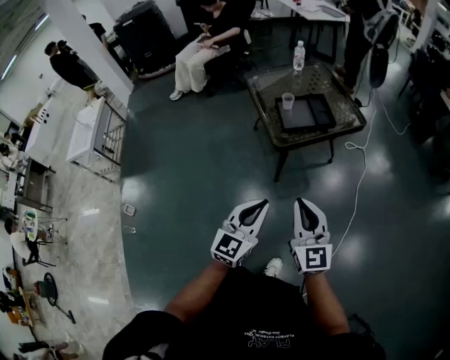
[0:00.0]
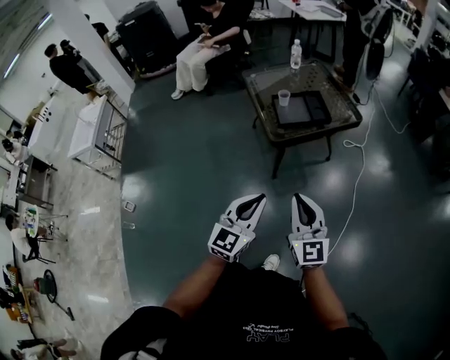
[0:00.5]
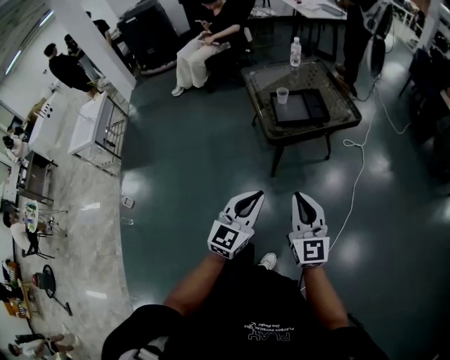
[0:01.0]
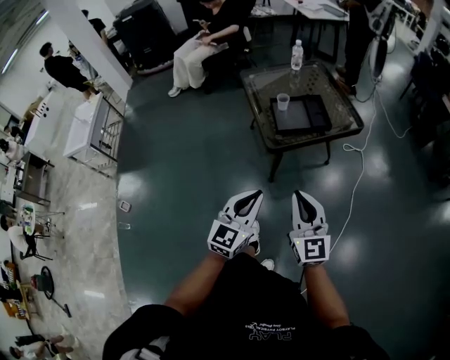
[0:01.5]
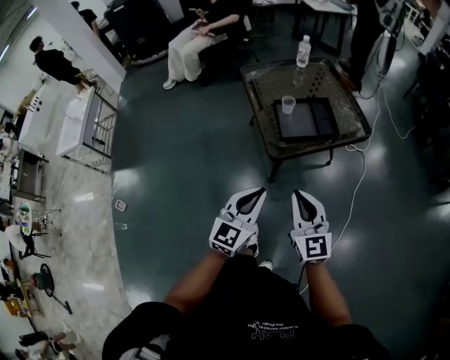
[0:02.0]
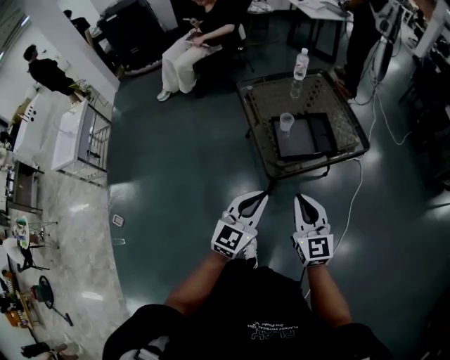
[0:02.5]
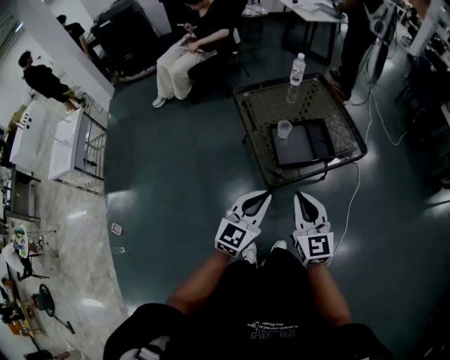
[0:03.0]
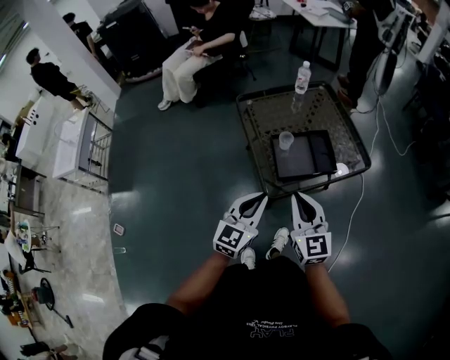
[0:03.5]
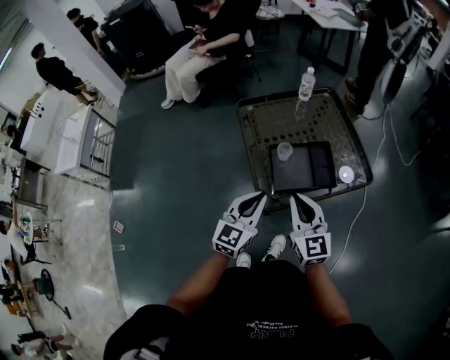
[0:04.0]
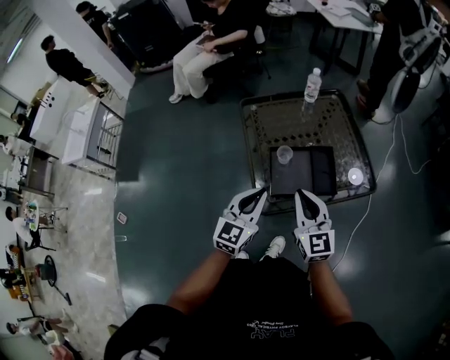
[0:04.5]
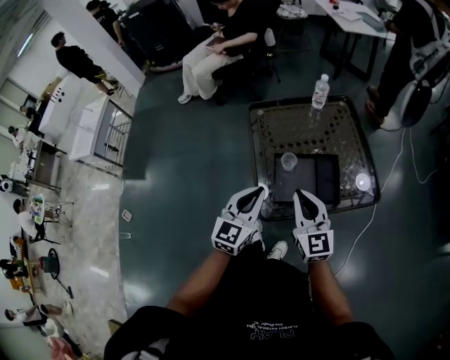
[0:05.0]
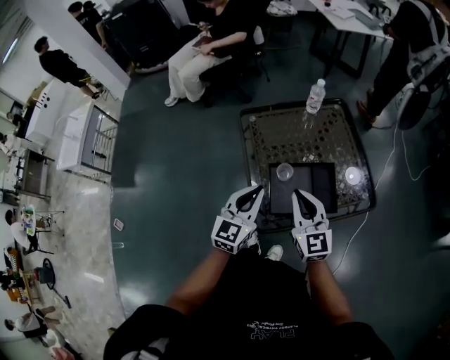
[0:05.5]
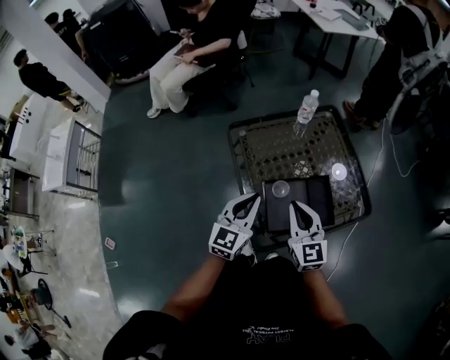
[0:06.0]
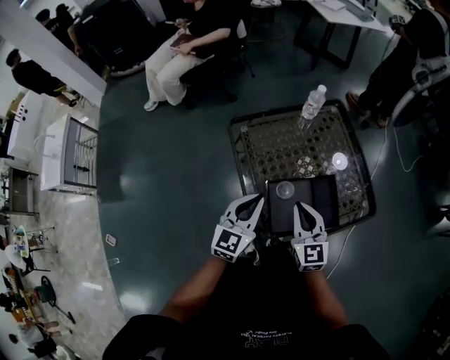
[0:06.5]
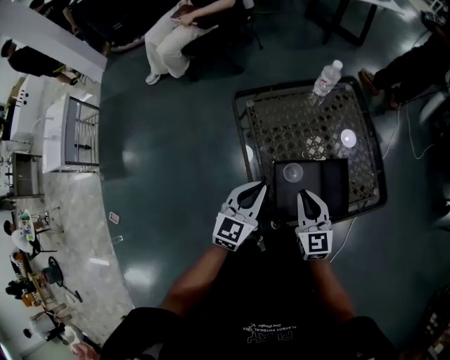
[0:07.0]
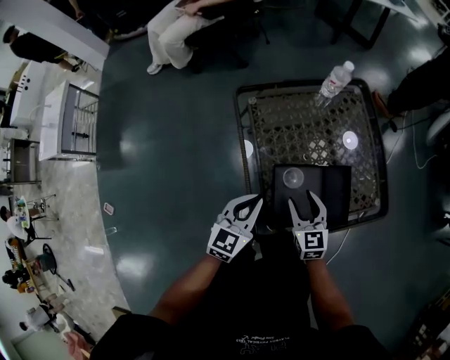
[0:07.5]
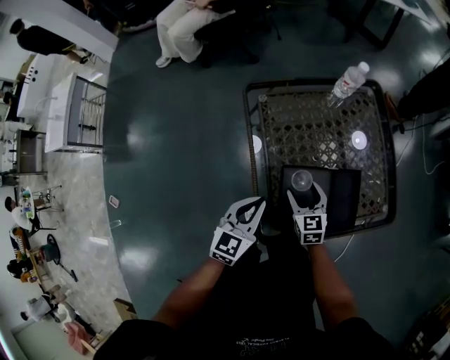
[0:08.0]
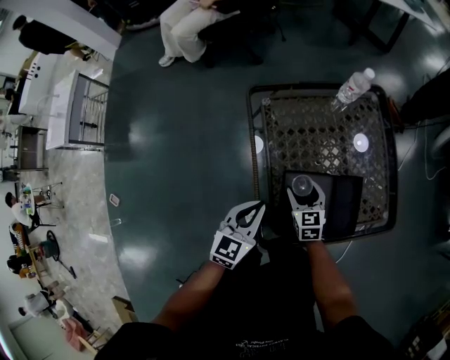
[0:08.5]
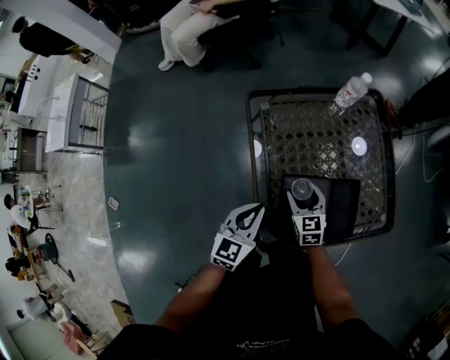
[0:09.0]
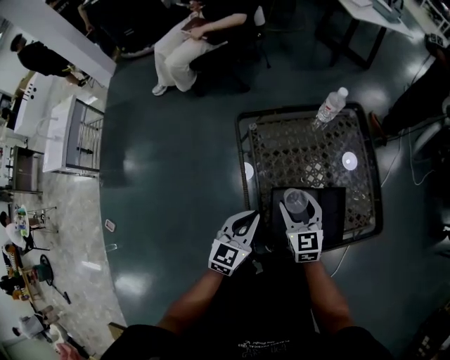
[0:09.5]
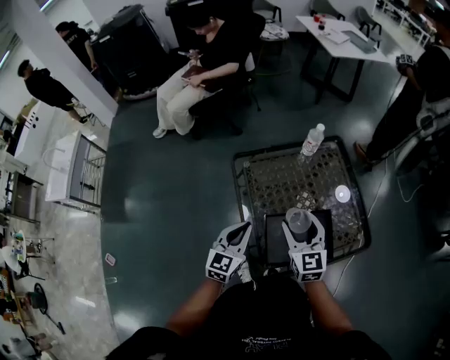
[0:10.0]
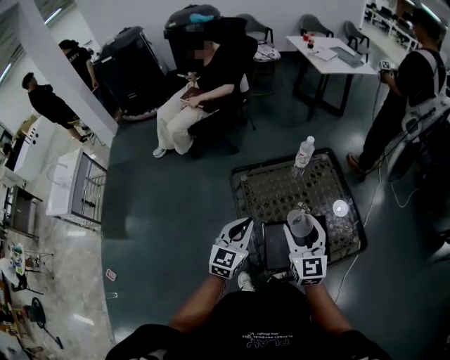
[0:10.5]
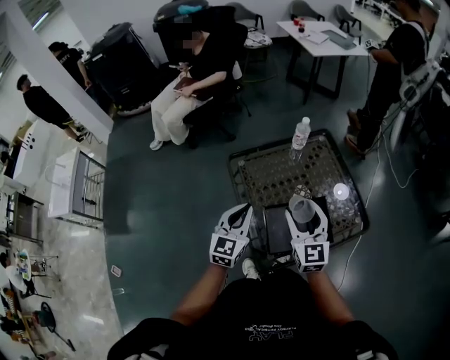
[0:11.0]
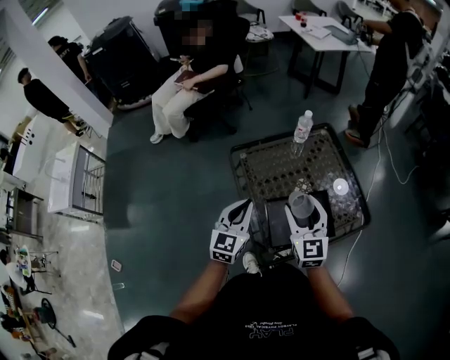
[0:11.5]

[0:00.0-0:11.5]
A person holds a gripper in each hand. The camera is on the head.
0:00.0 to 0:02.0: The two grippers go approximately 15 cm forward.
0:02.0 to 0:04.0: Both grippers move forward, roughly 25 cm.
0:04.0 to 0:06.0: The grippers both shift forward by approximately 15 cm.
0:06.0 to 0:07.5: The left gripper moves downward, approximately 10 cm; the right gripper moves downward, about 15 cm, and opens its fingers.
0:07.5 to 0:09.5: The right gripper goes approximately 5 cm forward.
0:09.5 to 0:11.5: Both grippers travel together upward, about 15 cm. The right gripper rotates some 20 degrees.

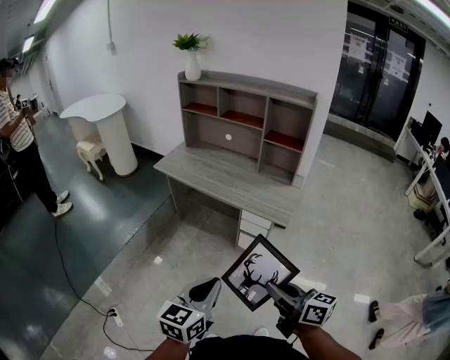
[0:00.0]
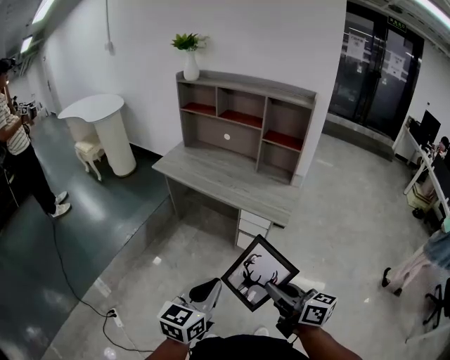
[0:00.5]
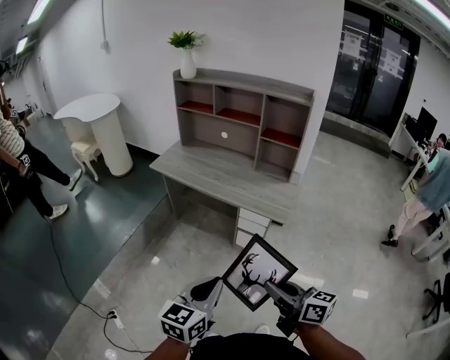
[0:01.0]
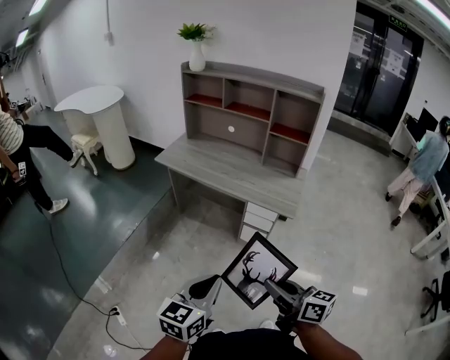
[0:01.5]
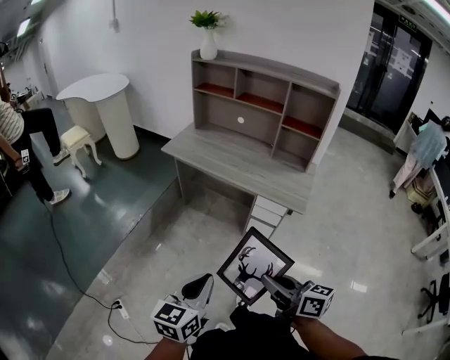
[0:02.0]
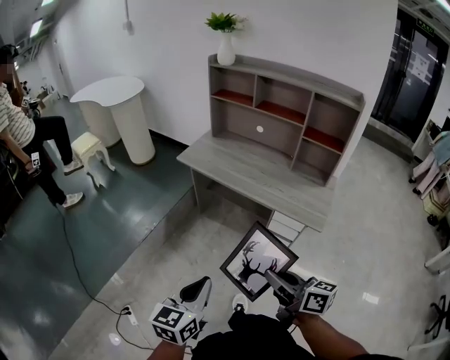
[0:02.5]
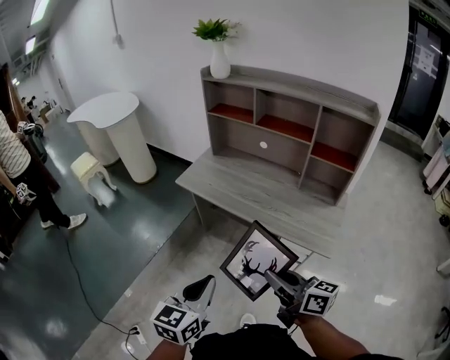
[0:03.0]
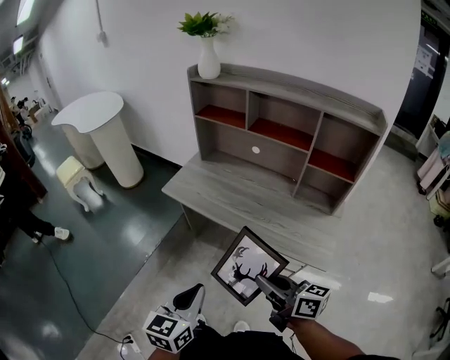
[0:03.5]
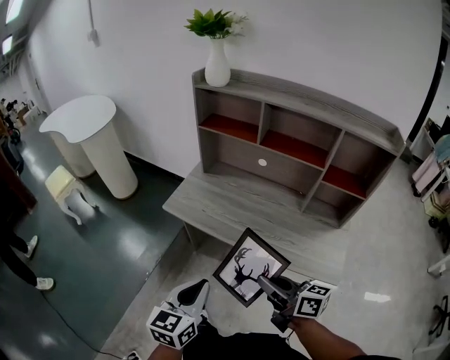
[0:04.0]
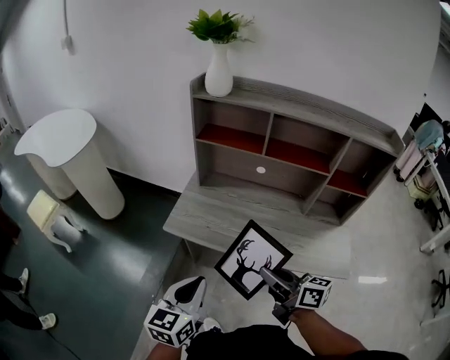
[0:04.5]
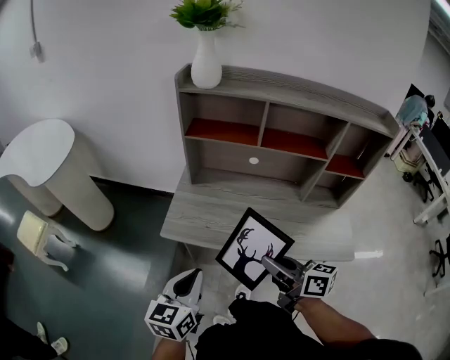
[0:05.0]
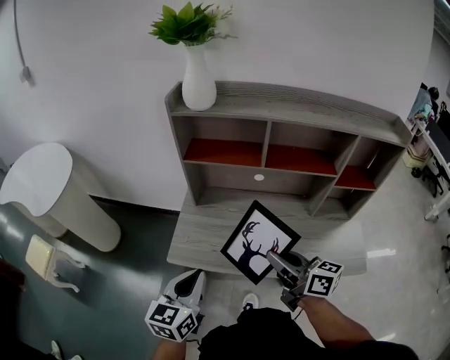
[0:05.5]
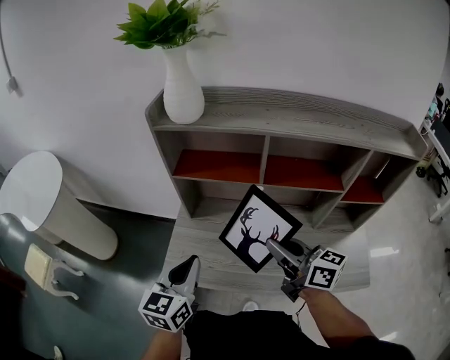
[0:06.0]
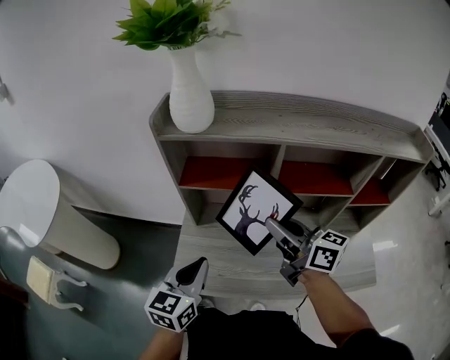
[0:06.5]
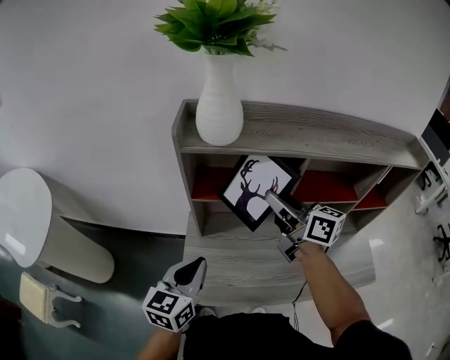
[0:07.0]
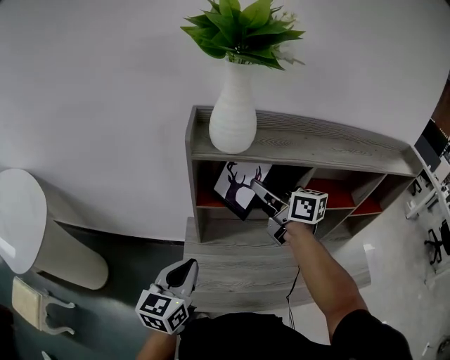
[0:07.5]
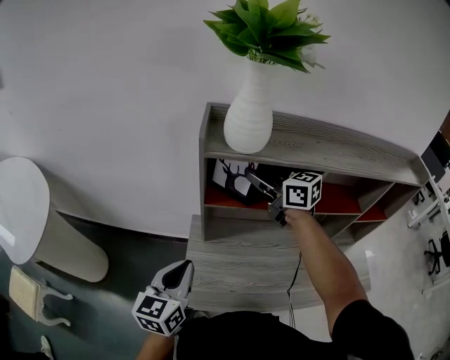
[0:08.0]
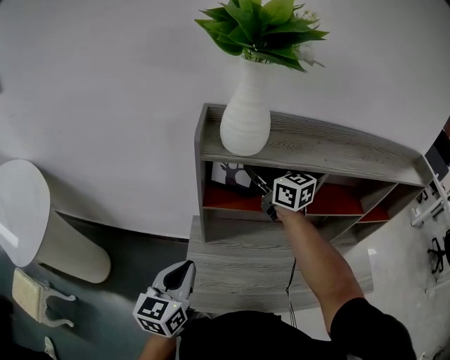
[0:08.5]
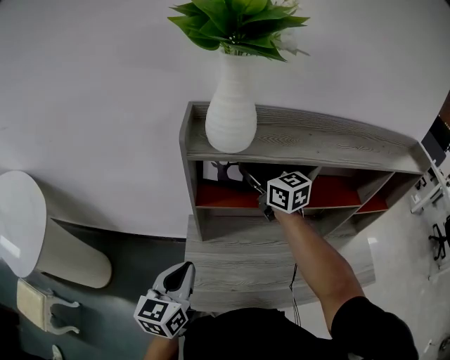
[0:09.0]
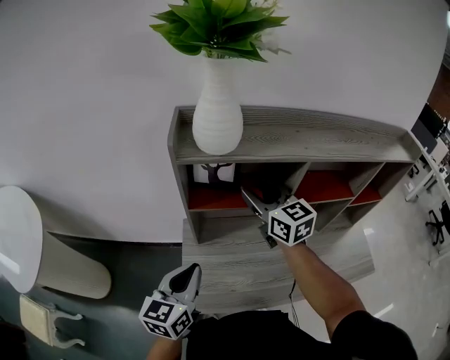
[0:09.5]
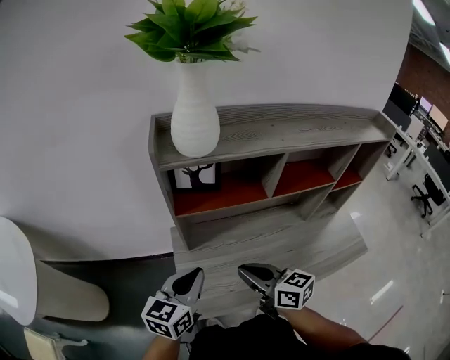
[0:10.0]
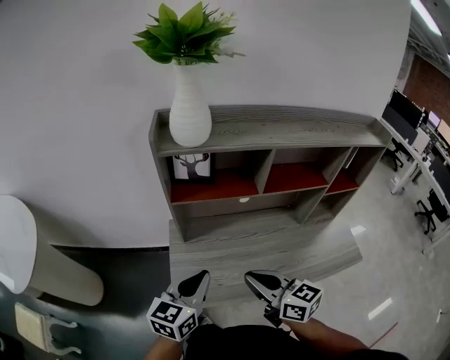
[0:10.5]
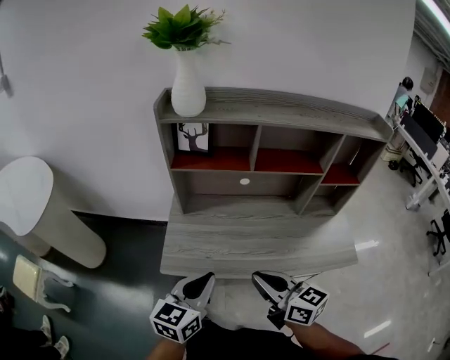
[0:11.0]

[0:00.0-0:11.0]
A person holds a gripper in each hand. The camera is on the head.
0:00.0 to 0:02.0: The grippers both shift to the left by roughly 10 cm.
0:02.0 to 0:03.5: Both grippers move forward, roughly 30 cm.
0:03.5 to 0:05.5: The left gripper heads forward and to the left, covering roughly 40 cm; the right gripper travels forward by some 35 cm, and swivels about 20 degrees.
0:05.5 to 0:07.5: The right gripper goes about 35 cm forward. Meanwhile the left gripper shifts roughly 25 cm forward.
0:07.5 to 0:09.0: The right gripper travels forward by about 10 cm, changes its angle by approximately 30 degrees, and opens up.
0:09.0 to 0:11.0: The left gripper moves backward and to the right, some 25 cm, while the right gripper is displaced backward by some 50 cm, turns by some 20 degrees, and closes.

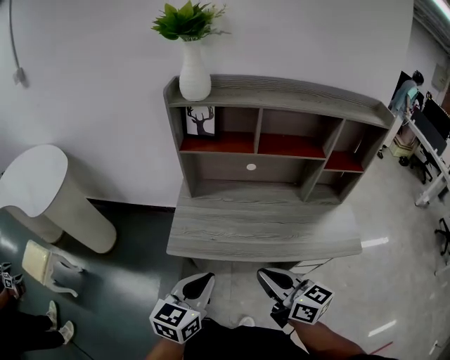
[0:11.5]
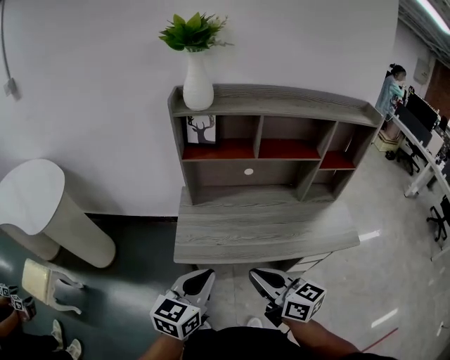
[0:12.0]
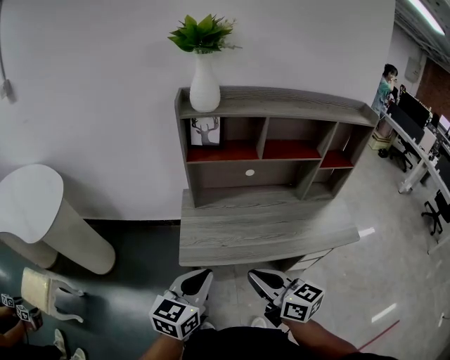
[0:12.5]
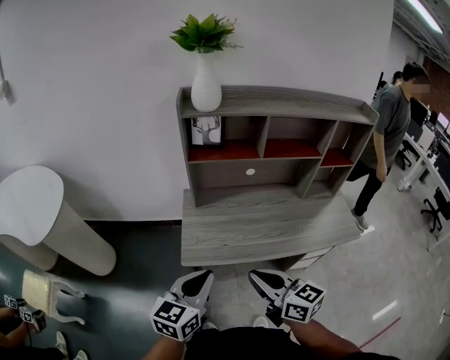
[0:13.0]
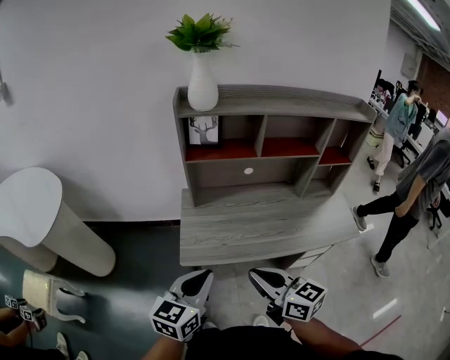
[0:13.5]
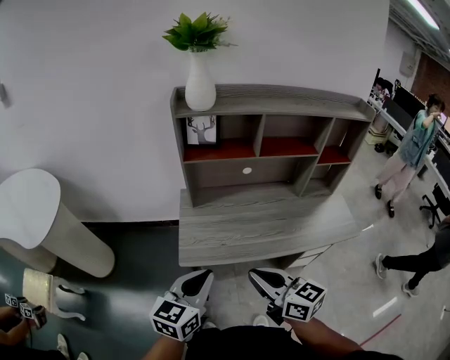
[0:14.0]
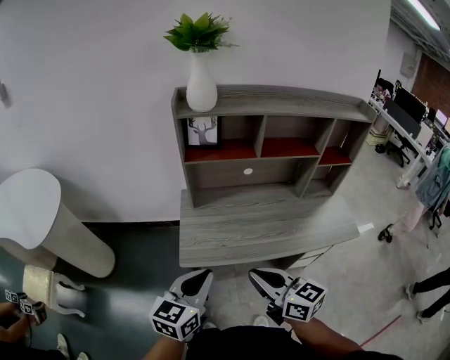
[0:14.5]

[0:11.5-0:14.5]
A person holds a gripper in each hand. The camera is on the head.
0:11.5 to 0:13.0: Both grippers travel together to the left, about 10 cm.
0:13.0 to 0:14.5: Both grippers stay about where they are.

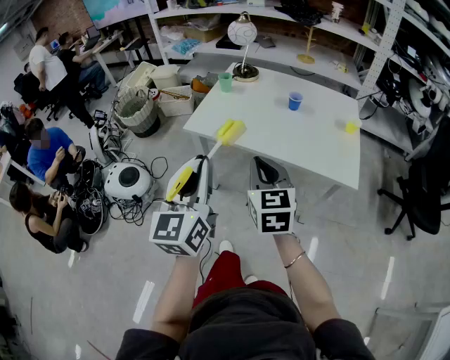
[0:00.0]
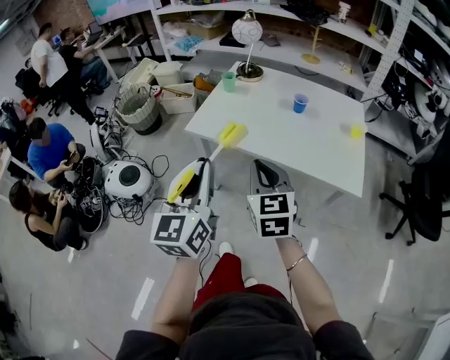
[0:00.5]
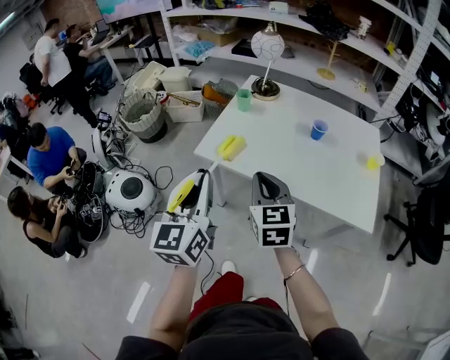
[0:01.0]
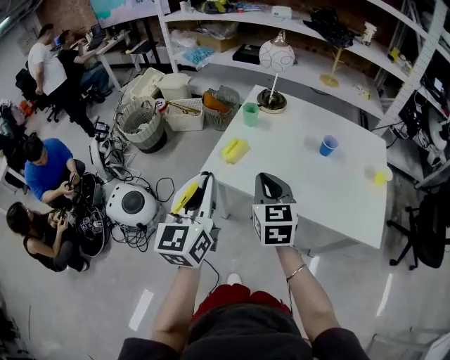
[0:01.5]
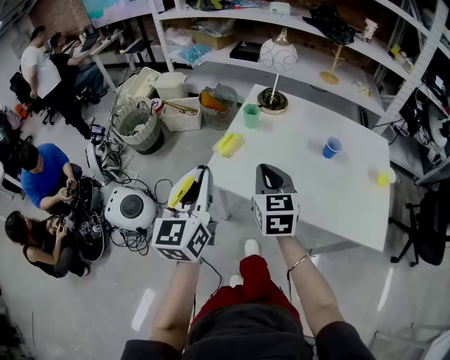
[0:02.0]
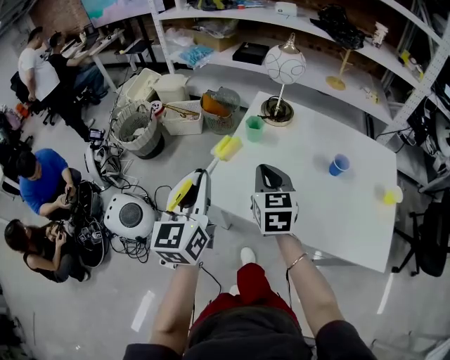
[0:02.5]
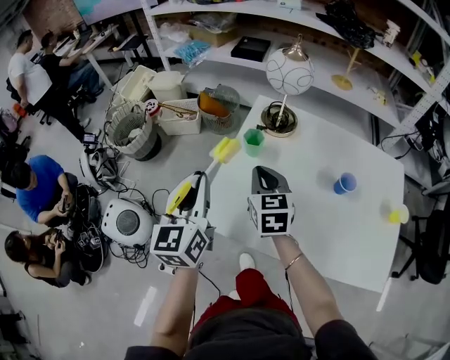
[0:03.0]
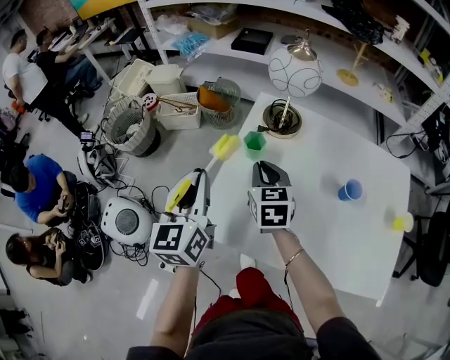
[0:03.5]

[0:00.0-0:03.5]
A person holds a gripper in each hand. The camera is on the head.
0:00.0 to 0:02.0: The left gripper goes approximately 30 cm forward and to the left. Meanwhile the right gripper moves forward, about 25 cm.
0:02.0 to 0:03.5: The two grippers go approximately 20 cm forward.
